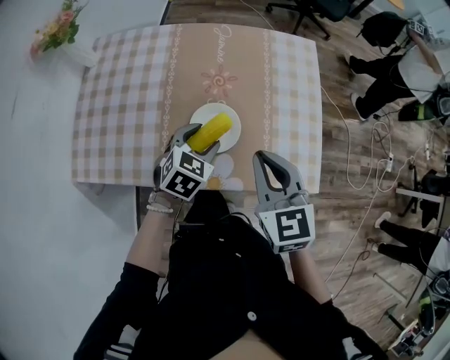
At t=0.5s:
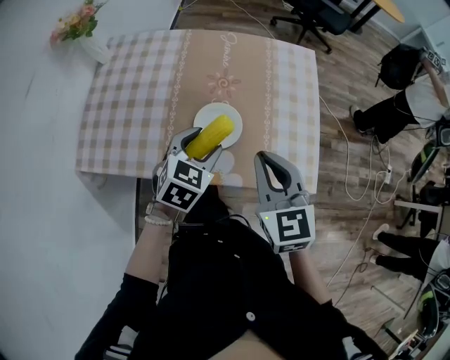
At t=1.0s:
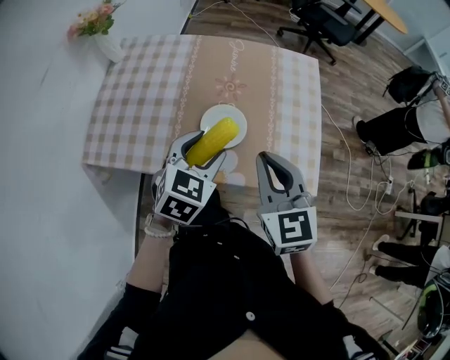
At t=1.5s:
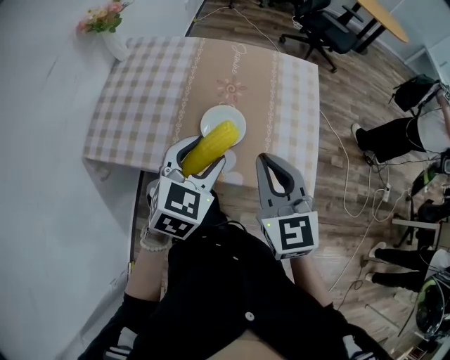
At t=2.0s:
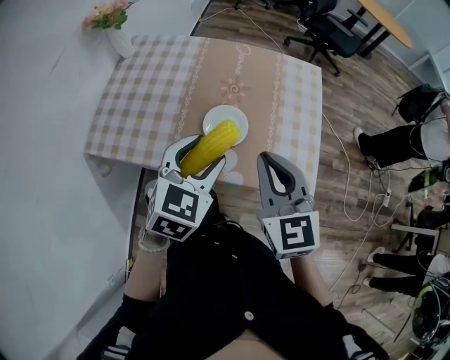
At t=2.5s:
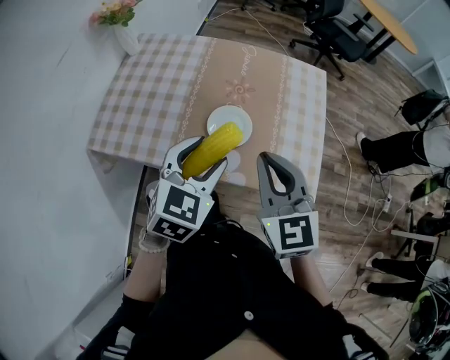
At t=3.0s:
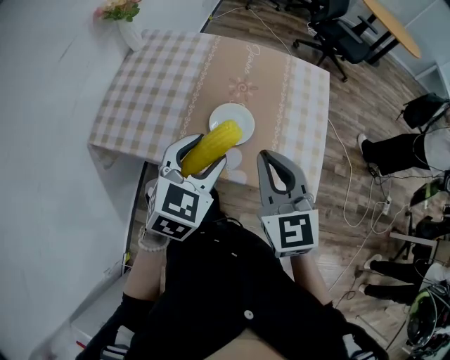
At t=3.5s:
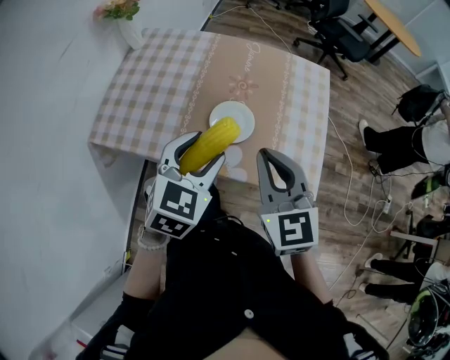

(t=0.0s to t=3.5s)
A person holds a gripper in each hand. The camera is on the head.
t=0.0s - t=2.0s: The left gripper shifts approximately 20 cm upward and backward; the right gripper is displaced upward and backward by roughly 10 cm.
t=2.0s - t=3.5s: The grippers make only small movements.

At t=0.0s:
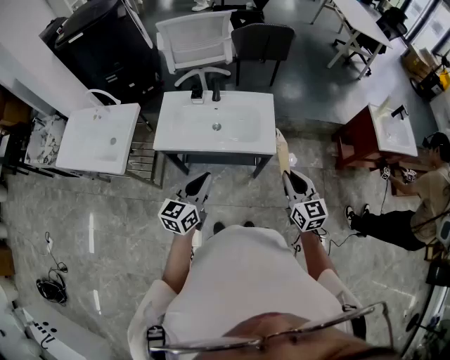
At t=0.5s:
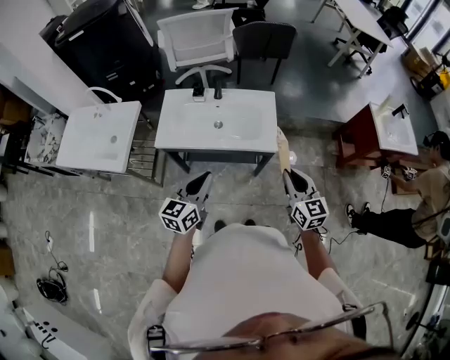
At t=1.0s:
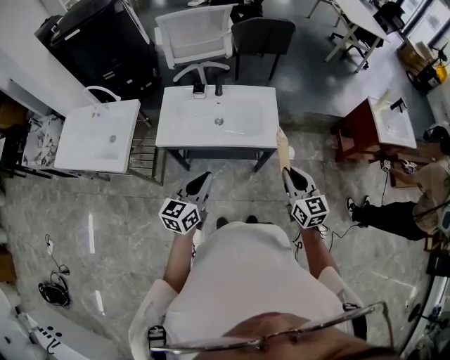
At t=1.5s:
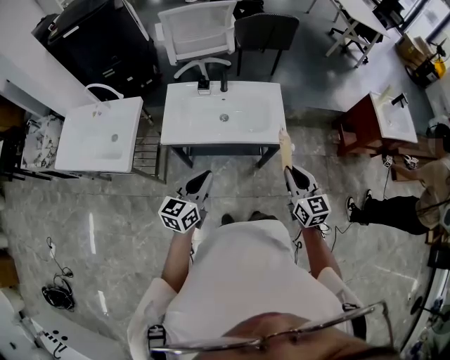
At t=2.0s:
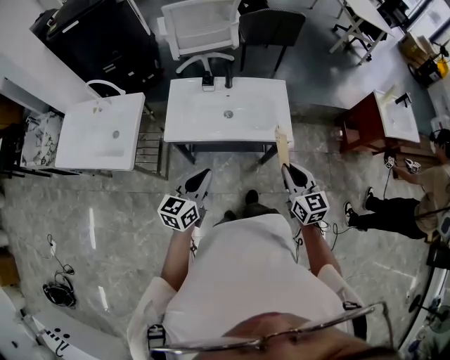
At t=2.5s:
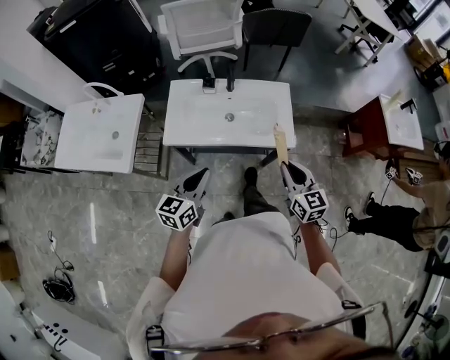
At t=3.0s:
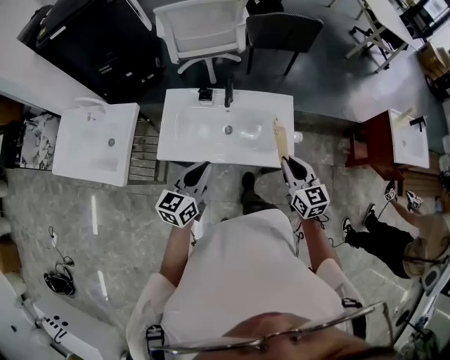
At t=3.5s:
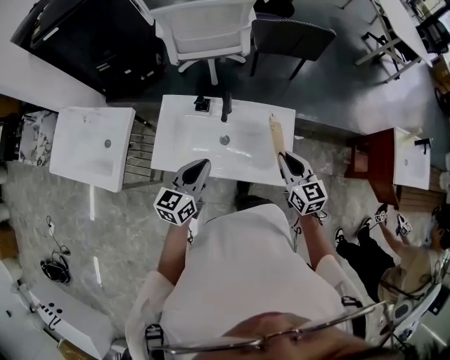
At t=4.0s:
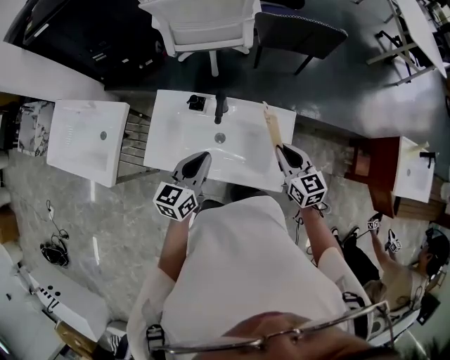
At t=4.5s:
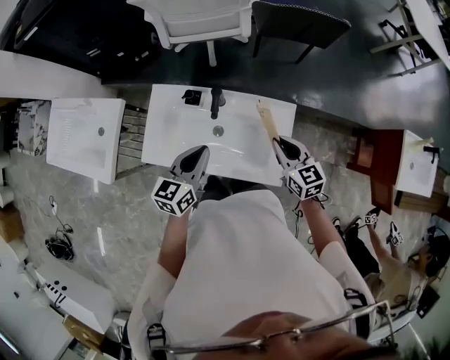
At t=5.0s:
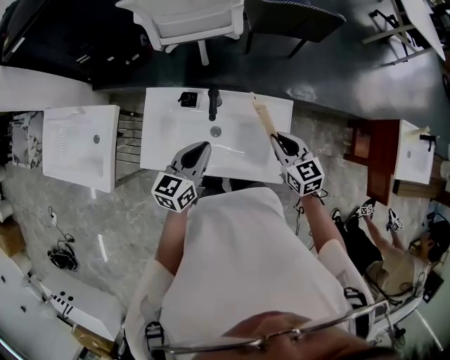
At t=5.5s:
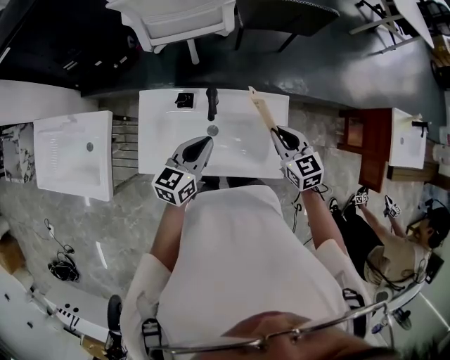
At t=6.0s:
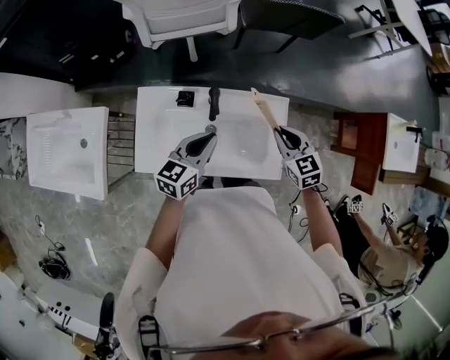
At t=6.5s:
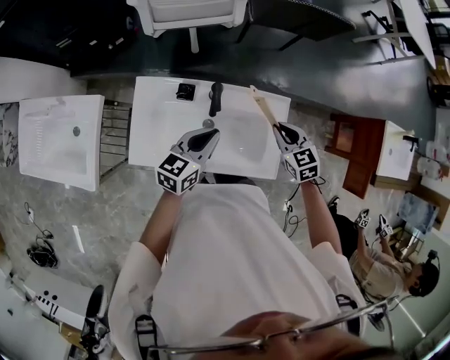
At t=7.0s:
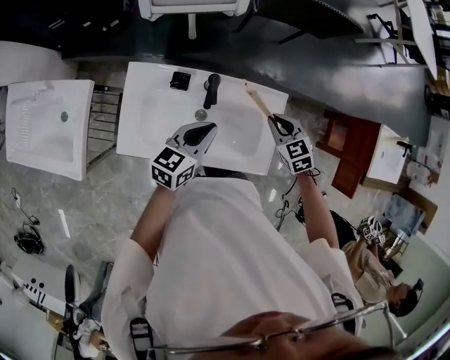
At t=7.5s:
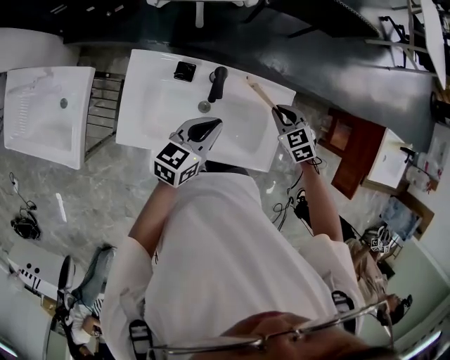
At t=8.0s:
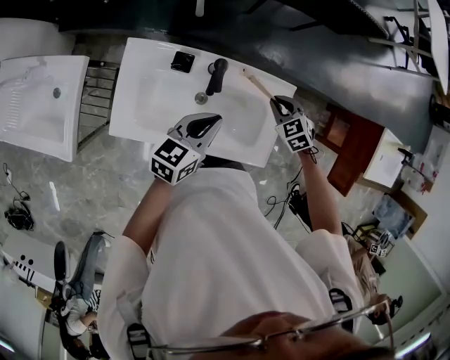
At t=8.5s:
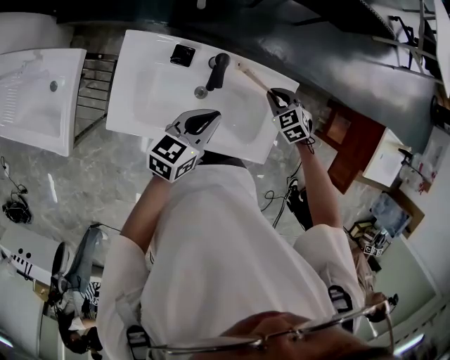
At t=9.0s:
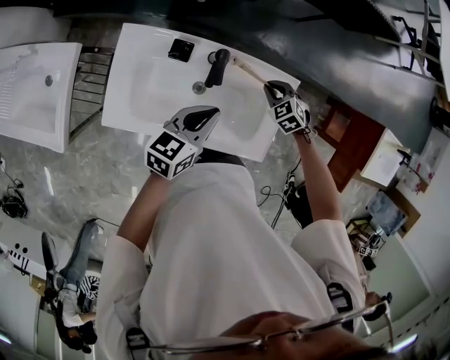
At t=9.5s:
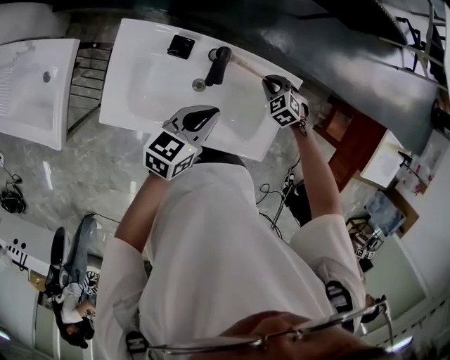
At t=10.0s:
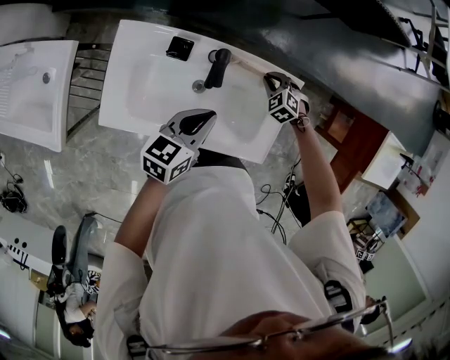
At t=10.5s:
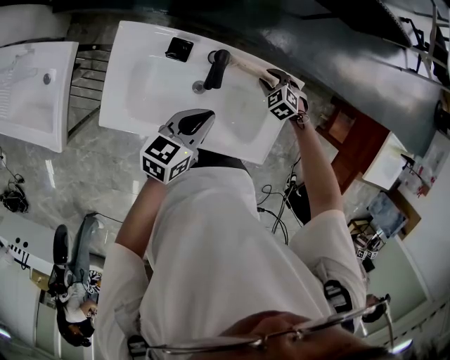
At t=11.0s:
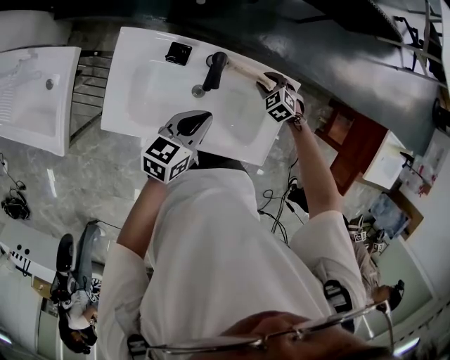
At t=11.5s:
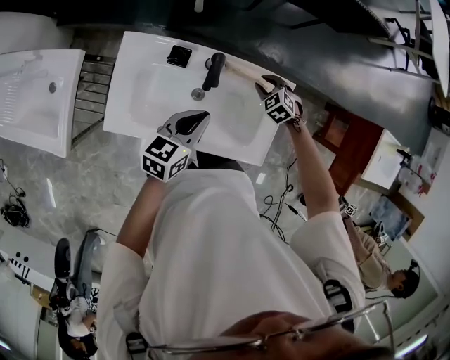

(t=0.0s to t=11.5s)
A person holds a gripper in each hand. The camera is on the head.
t=0.0s - t=2.0s: Both grippers travel together to the left, some 10 cm.
t=2.0s - t=4.0s: The grippers both shift forward by some 35 cm.
t=4.0s - t=6.0s: The right gripper shifts by some 5 cm. The left gripper goes about 5 cm forward.
t=6.0s - t=7.5s: The right gripper goes about 10 cm downward and forward, and turns by about 20 degrees.
t=7.5s - t=9.5s: The right gripper goes some 15 cm downward, and changes its angle by approximately 20 degrees.
t=9.5s - t=11.5s: The right gripper opens.

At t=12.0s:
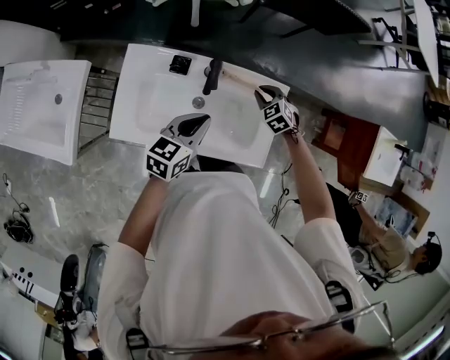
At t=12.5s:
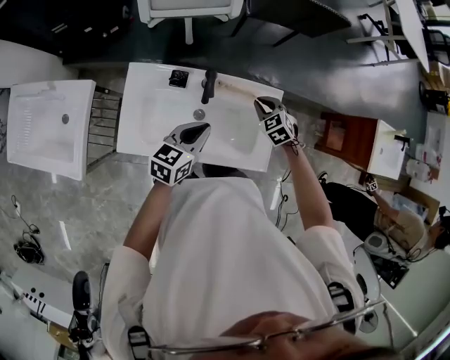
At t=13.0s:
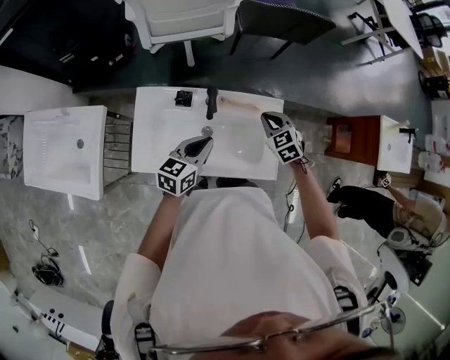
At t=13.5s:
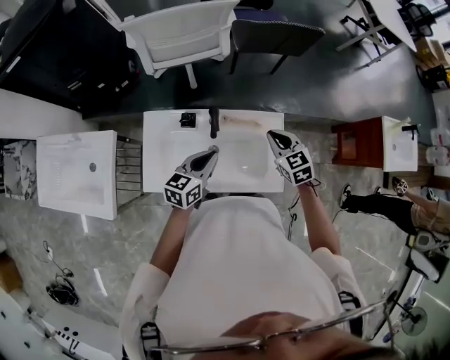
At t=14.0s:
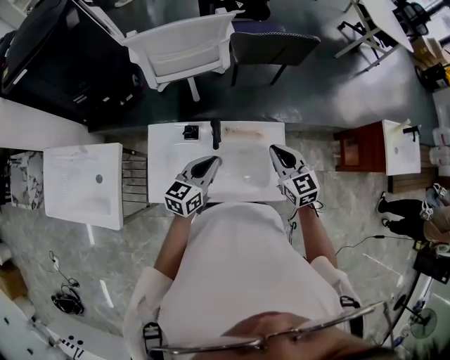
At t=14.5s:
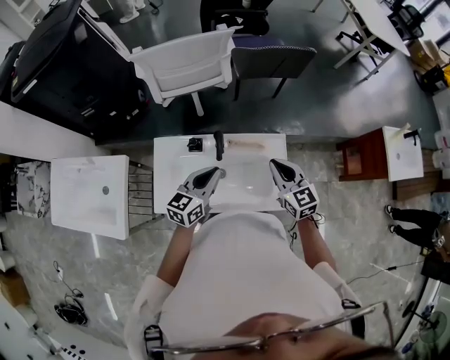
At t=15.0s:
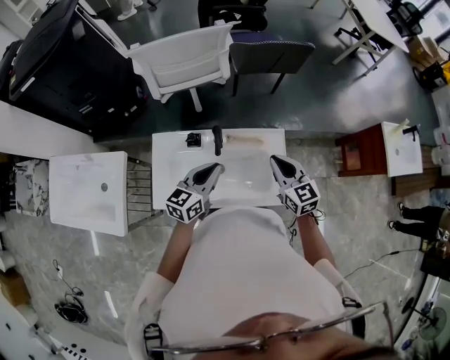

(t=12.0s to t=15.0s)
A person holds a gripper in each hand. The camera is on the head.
t=12.0s - t=13.5s: The right gripper goes about 20 cm upward, and rotates approximately 30 degrees.
t=13.5s - t=15.0s: Both grippers travel together upward, about 5 cm.

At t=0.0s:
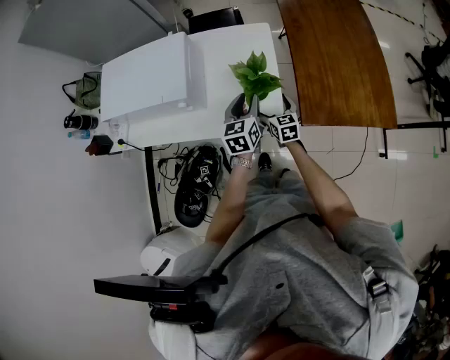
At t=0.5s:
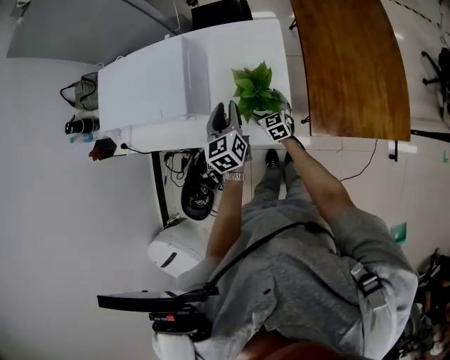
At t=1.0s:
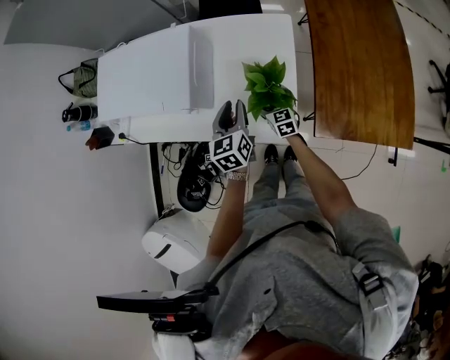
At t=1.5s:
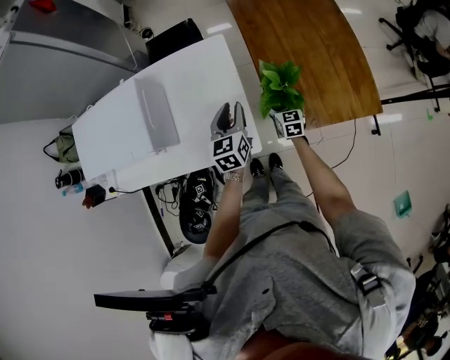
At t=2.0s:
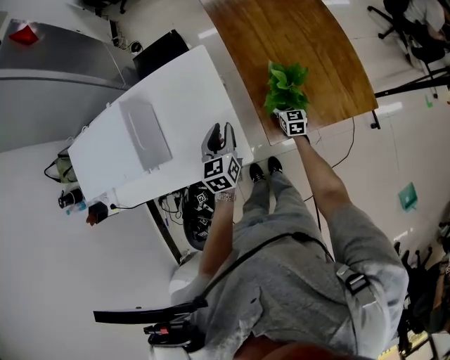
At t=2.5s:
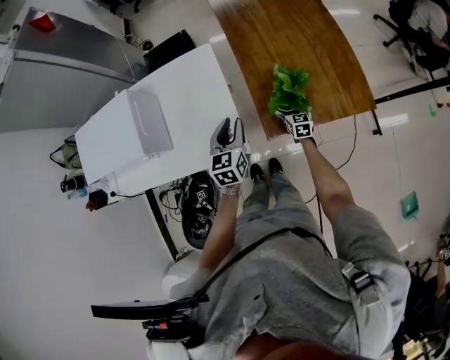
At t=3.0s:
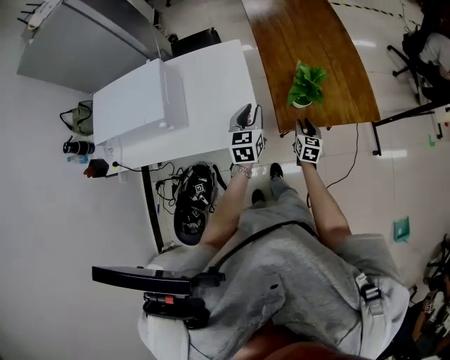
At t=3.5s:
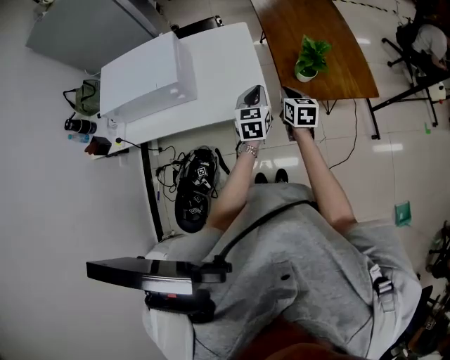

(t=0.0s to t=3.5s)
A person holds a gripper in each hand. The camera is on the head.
t=0.0s - t=2.0s: The left gripper moves some 15 cm; the right gripper moves some 30 cm, and changes its angle by approximately 20 degrees.
t=2.0s - t=3.5s: The left gripper moves backward and upward, some 15 cm, and closes. Meanwhile the right gripper is displaced backward, upward and to the left by approximately 35 cm, and closes its fingers.

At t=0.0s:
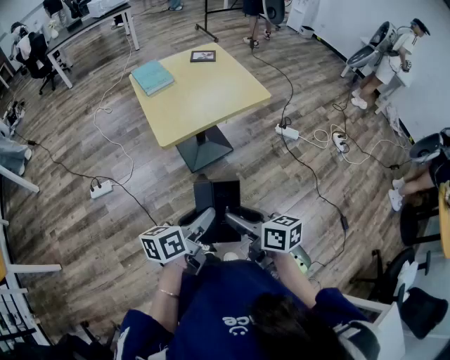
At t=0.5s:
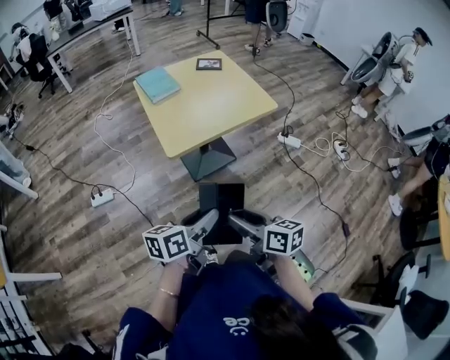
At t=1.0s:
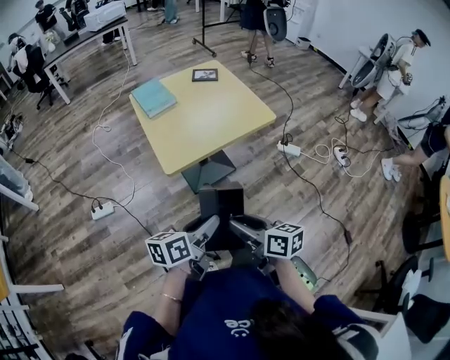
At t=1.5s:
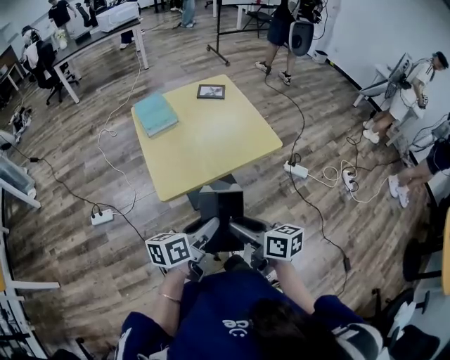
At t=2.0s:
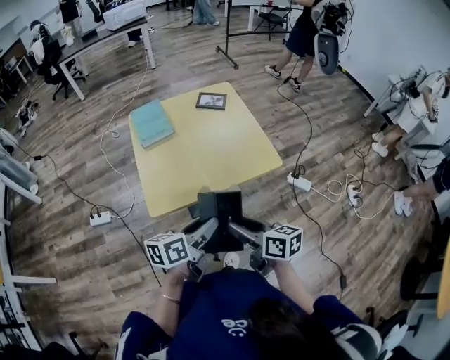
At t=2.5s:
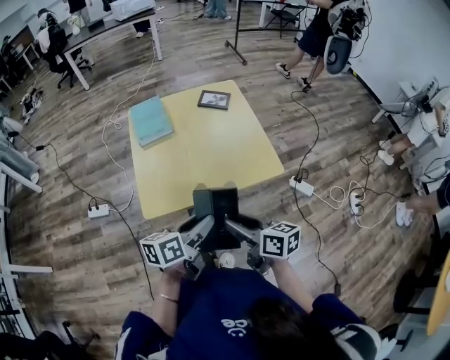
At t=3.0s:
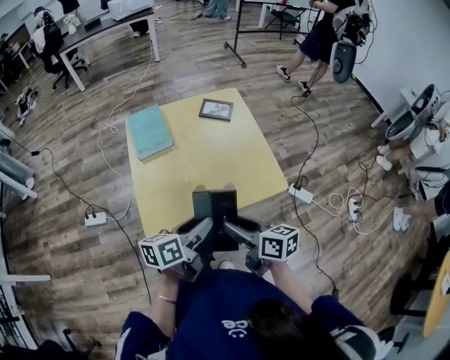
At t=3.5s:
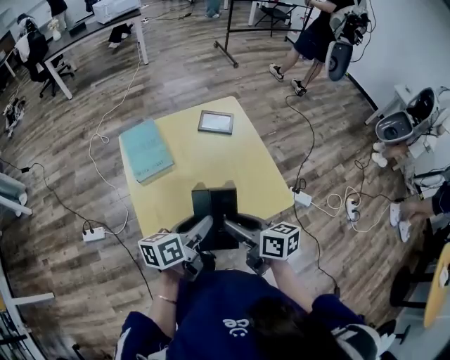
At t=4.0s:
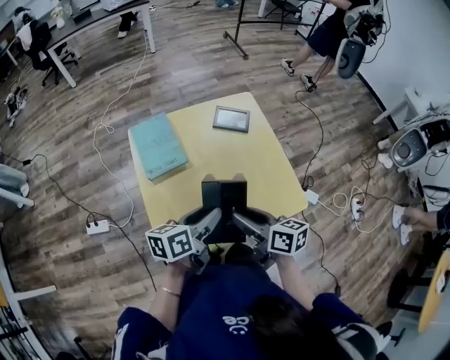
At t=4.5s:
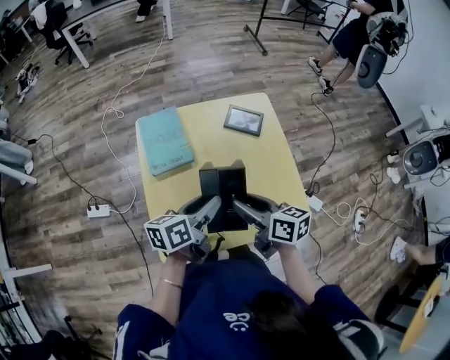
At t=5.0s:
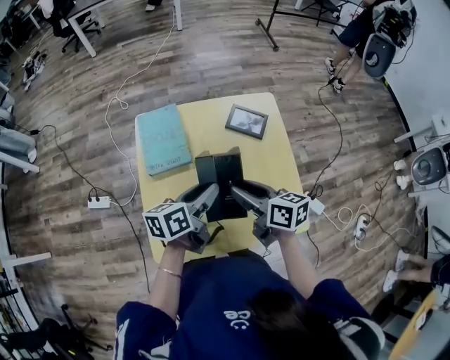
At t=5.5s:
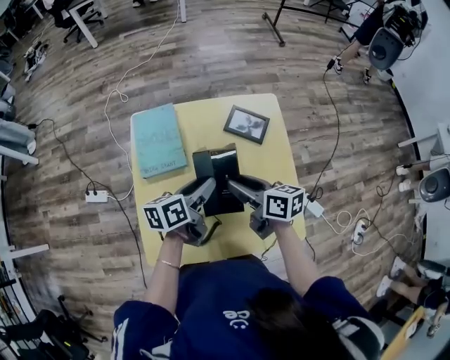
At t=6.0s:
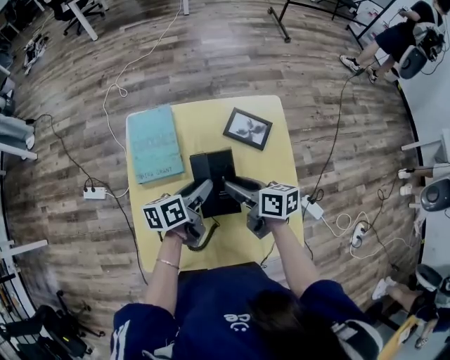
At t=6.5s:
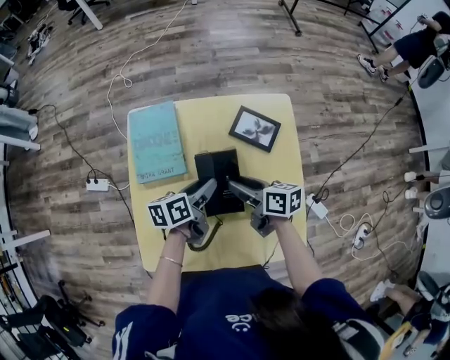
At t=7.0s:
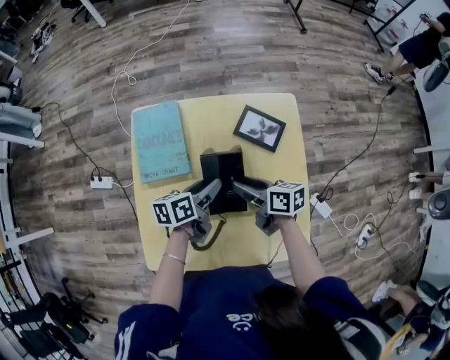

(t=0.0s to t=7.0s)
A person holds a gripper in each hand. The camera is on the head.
t=0.0s - t=2.0s: The two grippers go roughly 30 cm forward.
t=2.0s - t=3.5s: The two grippers go about 20 cm forward.
t=3.5s - t=5.0s: Both grippers move forward, some 15 cm.
t=5.0s - t=7.0s: The two grippers go roughly 15 cm downward and forward.
